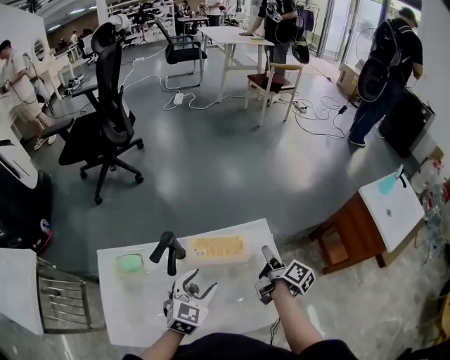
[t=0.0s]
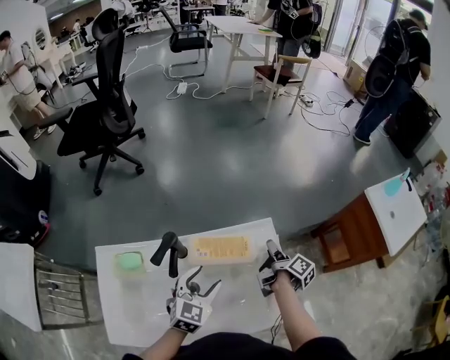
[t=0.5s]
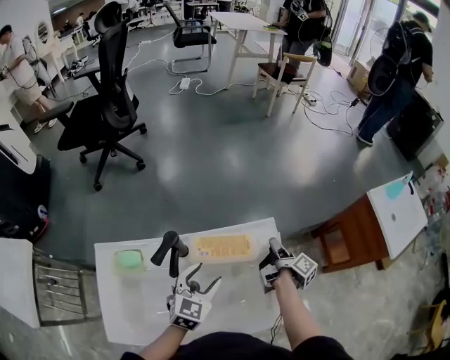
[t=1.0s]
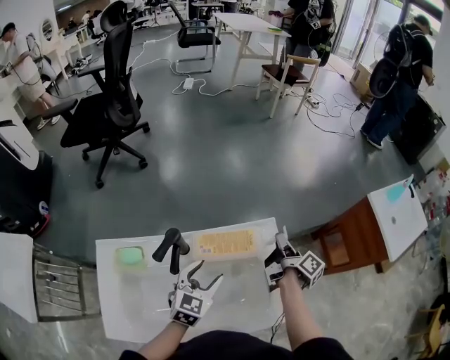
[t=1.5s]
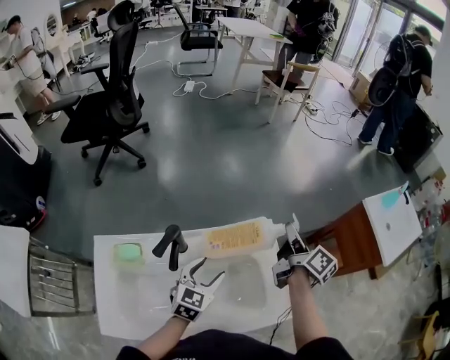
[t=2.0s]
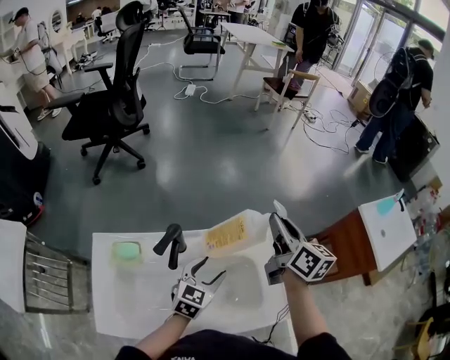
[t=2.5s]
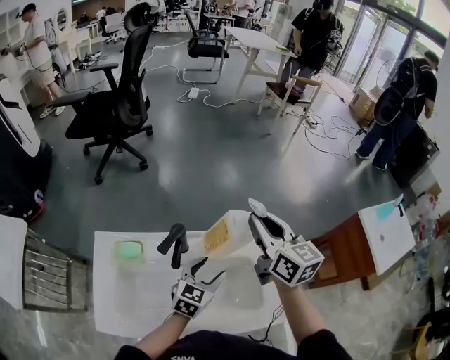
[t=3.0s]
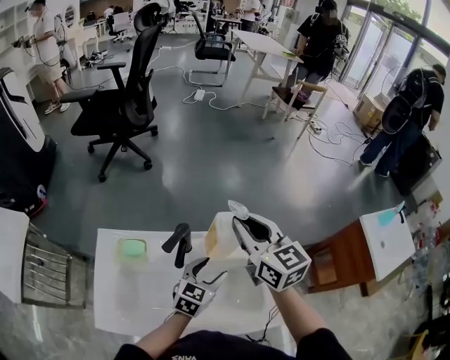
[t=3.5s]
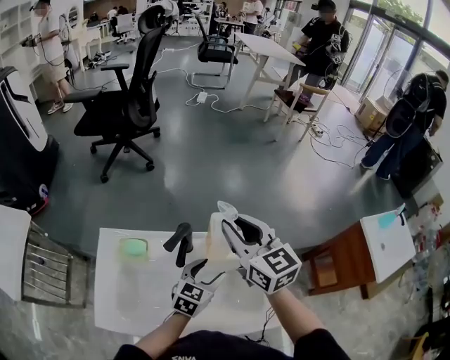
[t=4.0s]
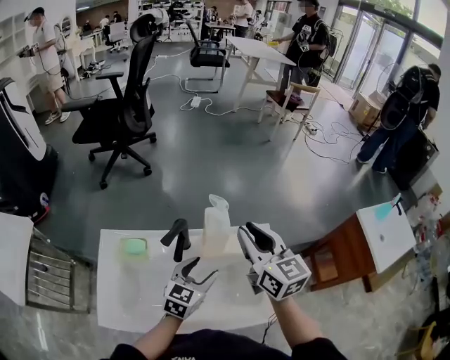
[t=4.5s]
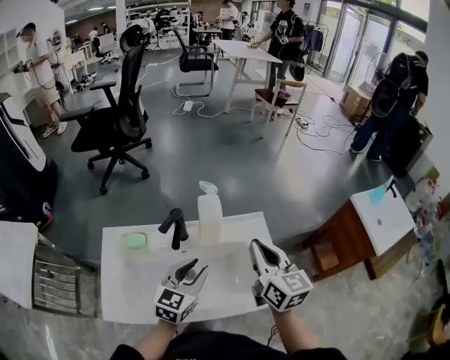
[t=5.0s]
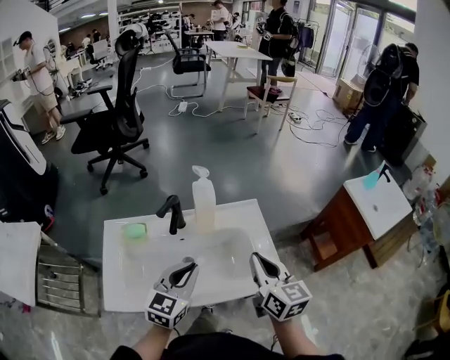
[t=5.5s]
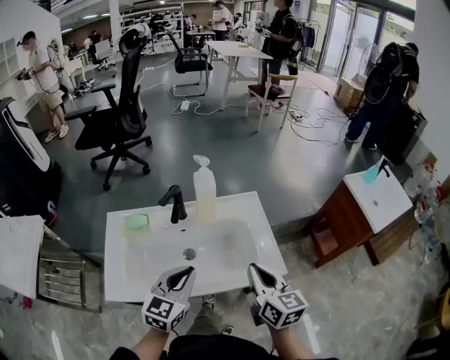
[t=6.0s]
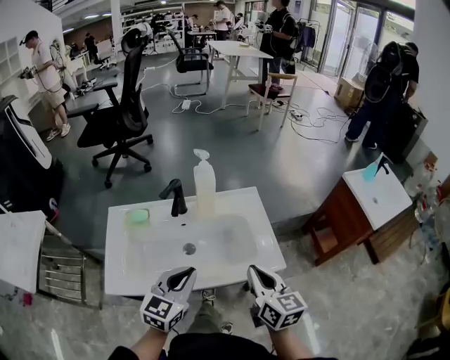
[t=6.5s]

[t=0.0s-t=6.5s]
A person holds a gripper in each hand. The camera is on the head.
t=0.0s to t=2.0s: The right gripper goes roughly 10 cm upward and forward, and closes its fingers.
t=2.0s to t=4.5s: The right gripper travels to the left and upward by roughly 20 cm, and rotates around the line of its fingers by about 50 degrees, counterclockwise from behind. The left gripper moves about 5 cm.
t=4.5s to t=6.5s: Both grippers travel together backward, about 25 cm. The right gripper closes, while the left gripper closes up.

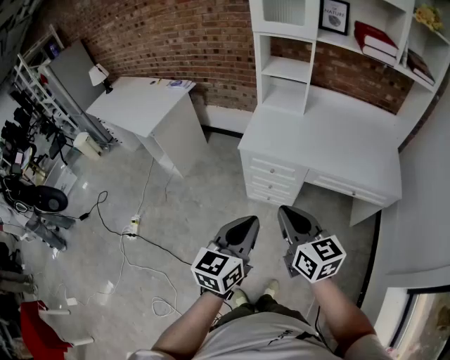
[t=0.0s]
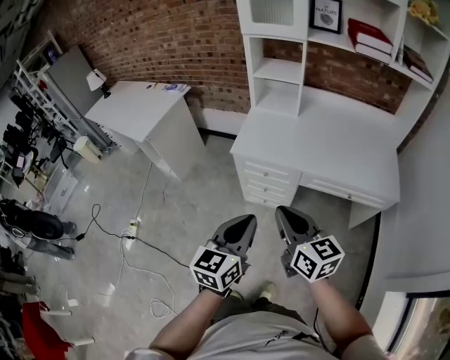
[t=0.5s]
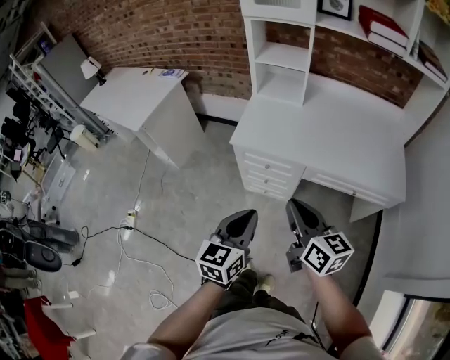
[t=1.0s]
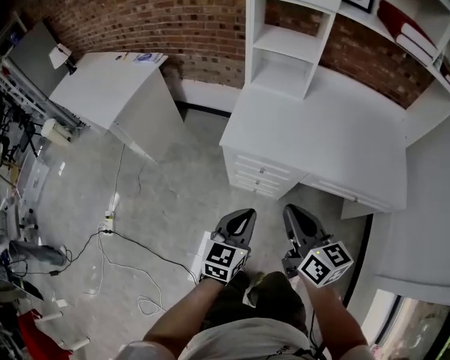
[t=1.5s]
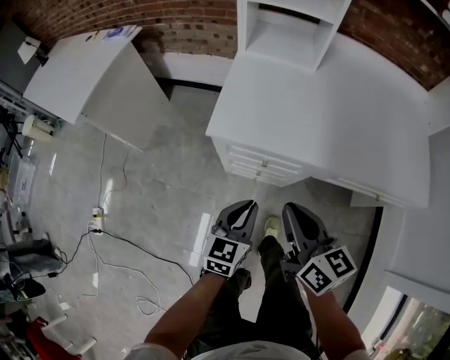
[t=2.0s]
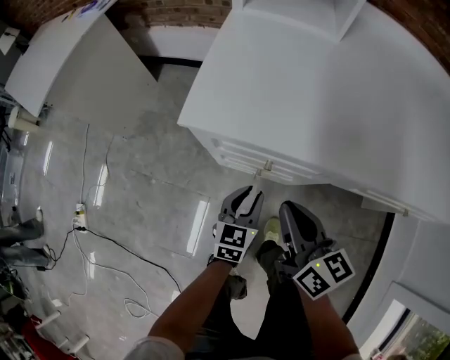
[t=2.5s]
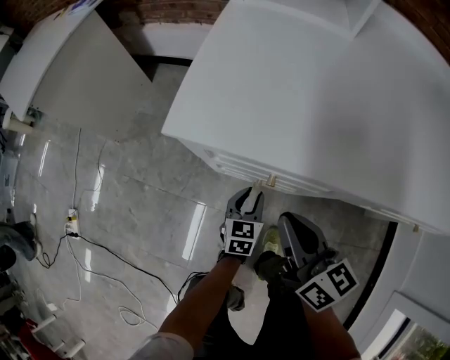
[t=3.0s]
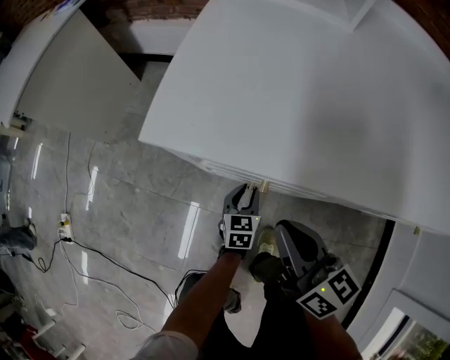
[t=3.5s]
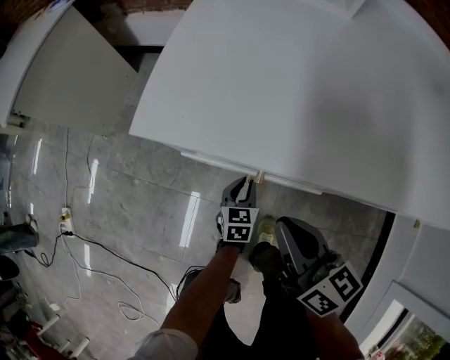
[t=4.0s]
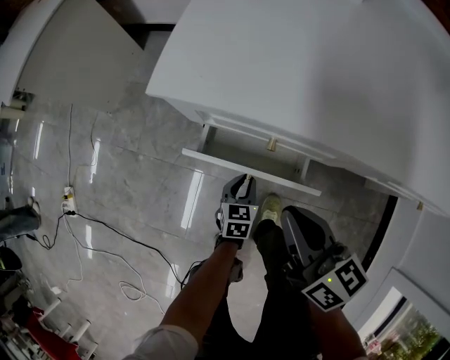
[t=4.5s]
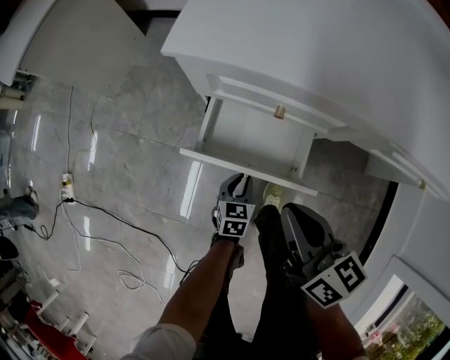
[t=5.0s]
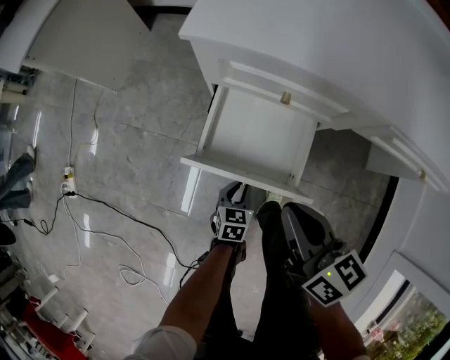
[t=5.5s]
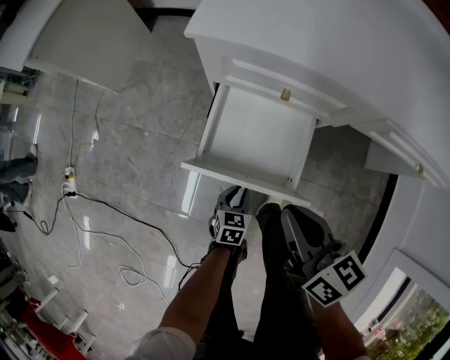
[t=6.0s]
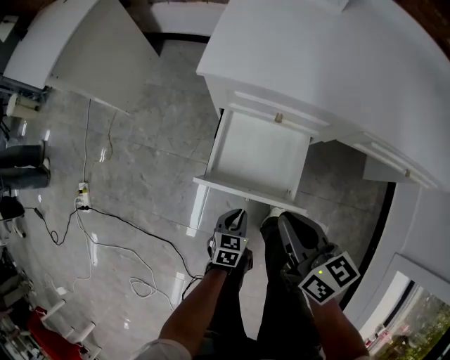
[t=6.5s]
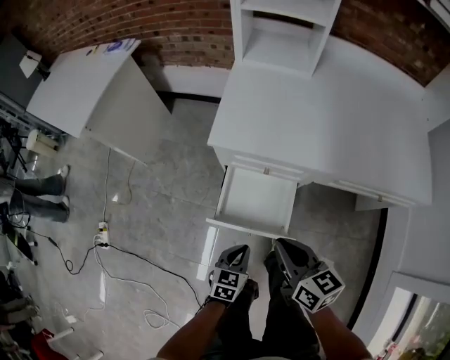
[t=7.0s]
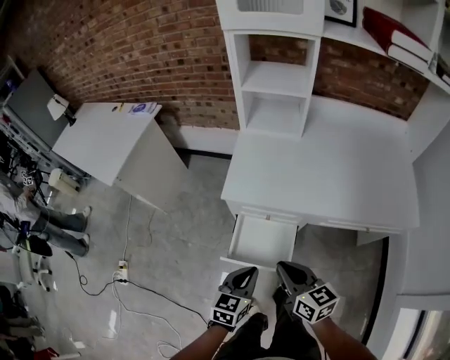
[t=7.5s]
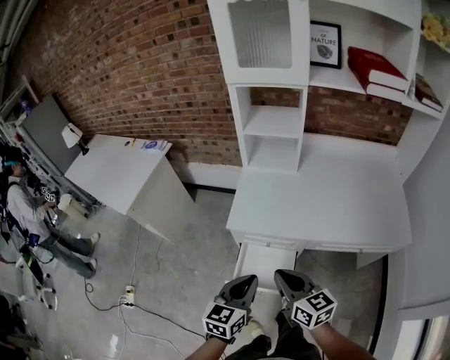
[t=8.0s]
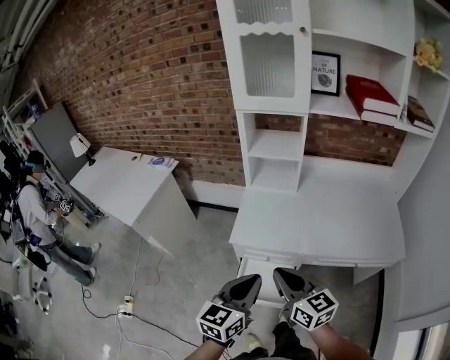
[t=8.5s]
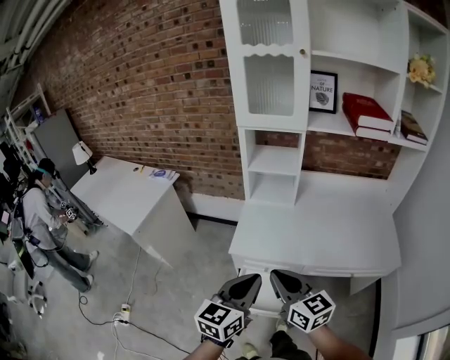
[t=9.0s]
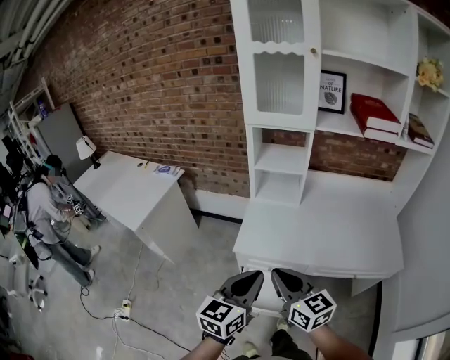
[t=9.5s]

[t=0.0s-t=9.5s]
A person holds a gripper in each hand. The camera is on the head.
t=0.0s to t=2.0s: The left gripper shifts some 40 cm downward and forward. The right gripper travels forward and downward by about 30 cm.
t=2.0s to t=4.0s: The left gripper travels downward by roughly 40 cm, and rotates some 20 degrees, while the right gripper heads downward, covering about 25 cm.
t=4.0s to t=5.5s: The right gripper moves backward and to the left, some 15 cm, while the left gripper is displaced backward by some 20 cm.
t=5.5s to t=7.5s: The right gripper moves upward, approximately 25 cm, while the left gripper goes about 50 cm upward, and changes its angle by approximately 20 degrees.
t=7.5s to t=9.5s: Both grippers travel together upward, some 25 cm. The left gripper changes its angle by some 20 degrees.

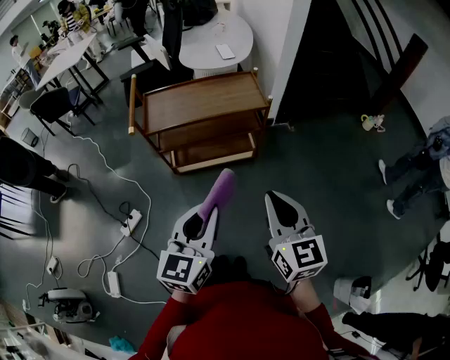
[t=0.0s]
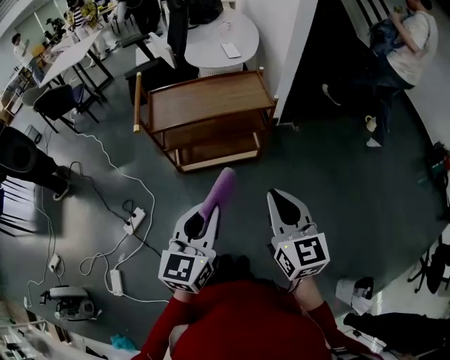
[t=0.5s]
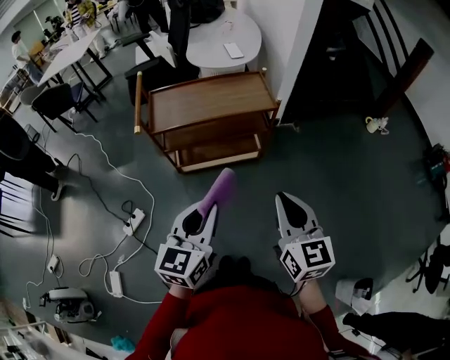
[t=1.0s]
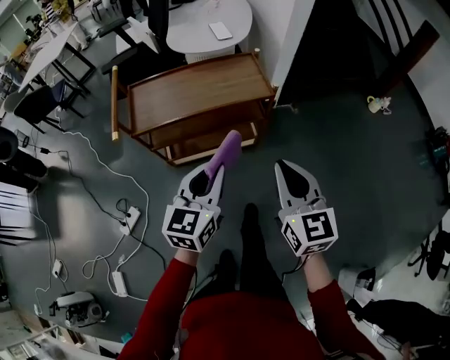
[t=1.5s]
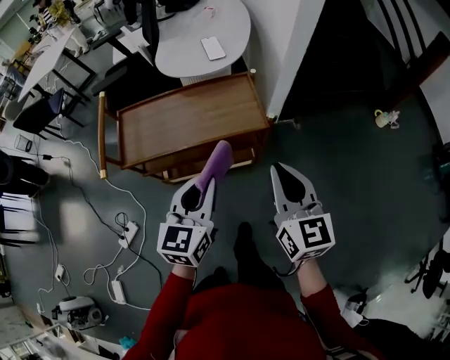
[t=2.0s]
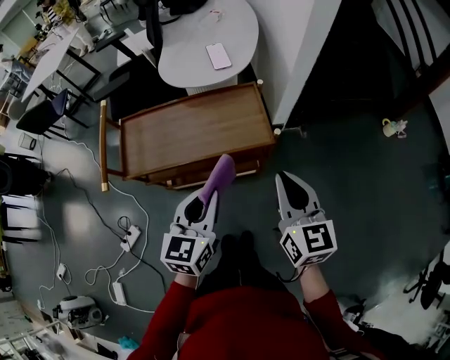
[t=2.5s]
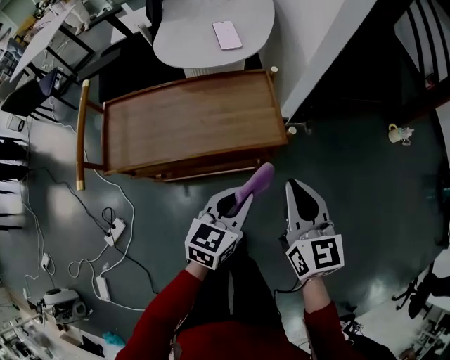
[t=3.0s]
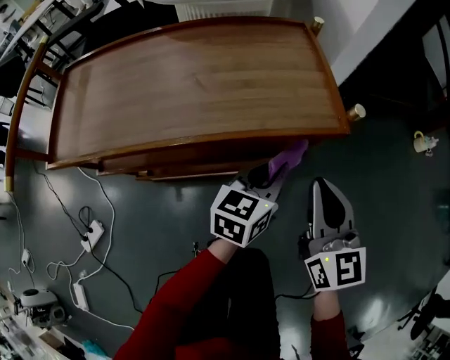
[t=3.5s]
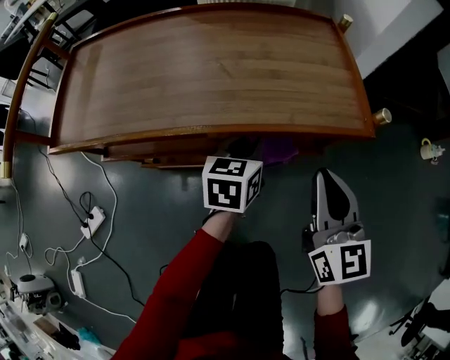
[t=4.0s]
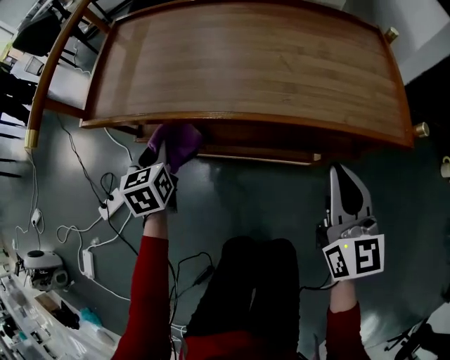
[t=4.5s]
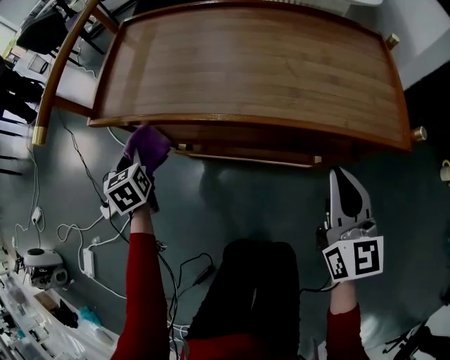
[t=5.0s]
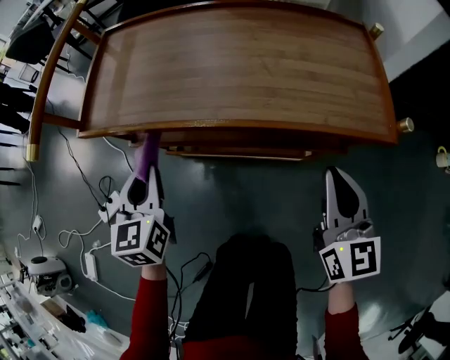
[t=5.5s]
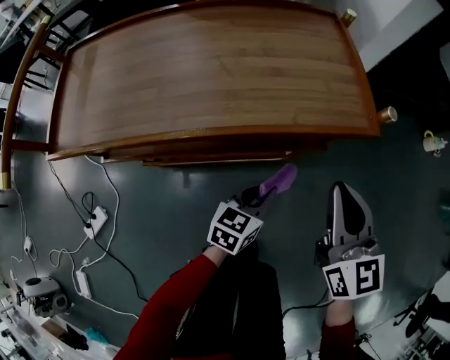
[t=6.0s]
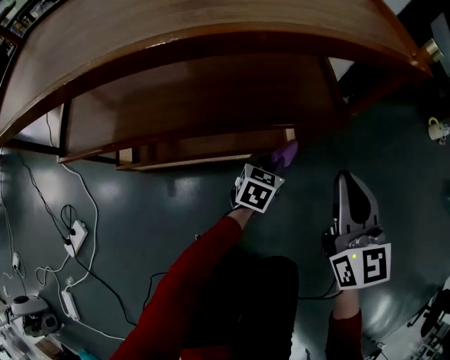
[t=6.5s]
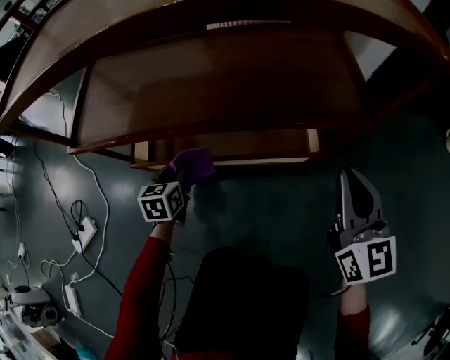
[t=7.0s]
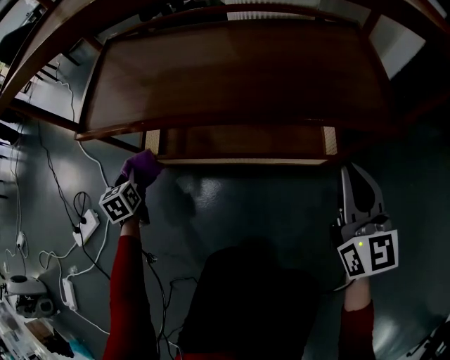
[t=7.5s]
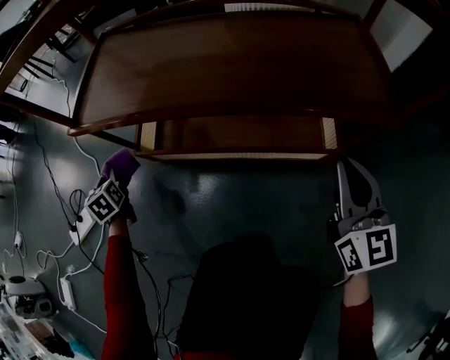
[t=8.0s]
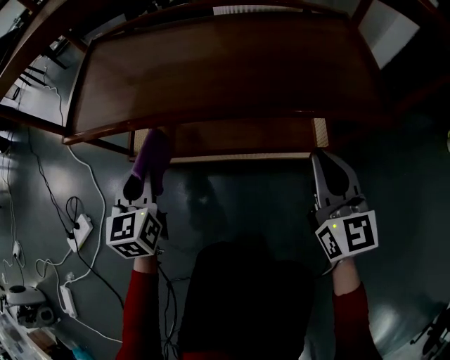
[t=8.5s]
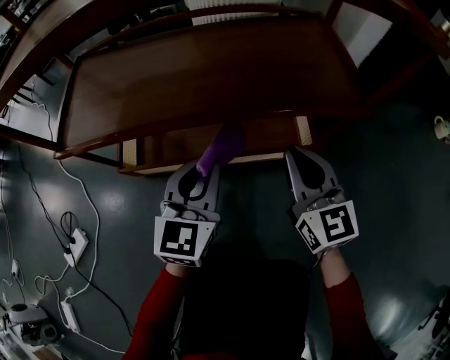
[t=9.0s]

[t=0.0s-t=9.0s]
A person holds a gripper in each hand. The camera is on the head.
t=0.0s to t=2.0s: Both grippers travel together forward, approximately 20 cm.
t=2.0s to t=4.5s: Both grippers travel together downward, about 25 cm. The left gripper changes its angle by roughly 40 degrees.
t=4.5s to t=7.0s: The right gripper goes about 15 cm downward. Meanwhile the left gripper heads downward, covering roughly 25 cm.
t=7.0s to t=9.0s: The left gripper shifts approximately 15 cm upward, and rotates about 30 degrees. Meanwhile the right gripper ends up approximately 10 cm from where it was.

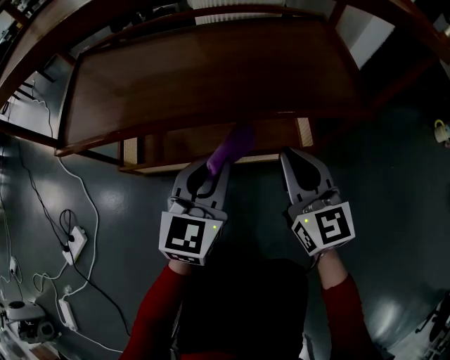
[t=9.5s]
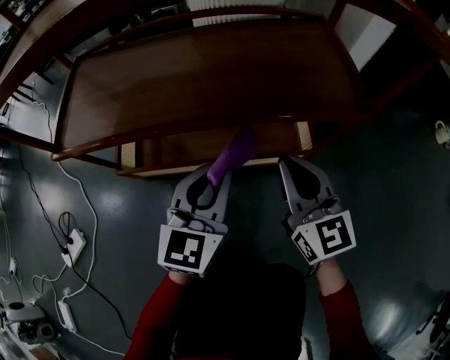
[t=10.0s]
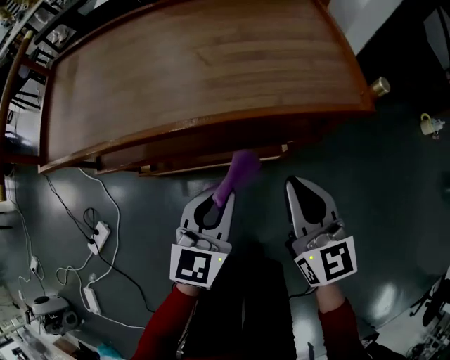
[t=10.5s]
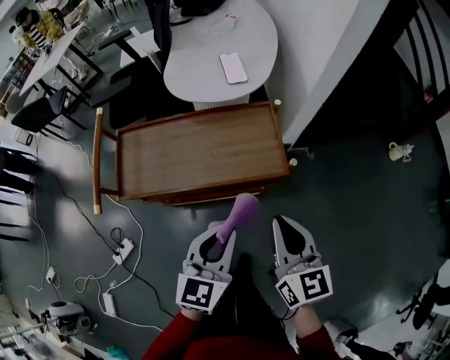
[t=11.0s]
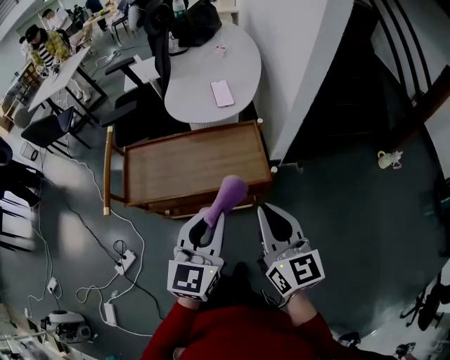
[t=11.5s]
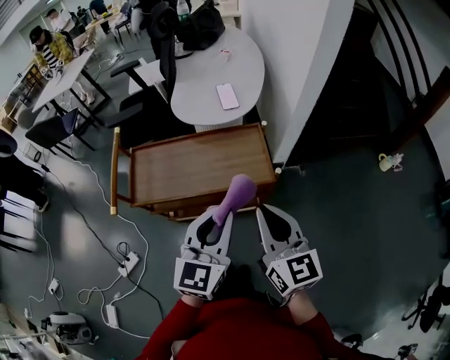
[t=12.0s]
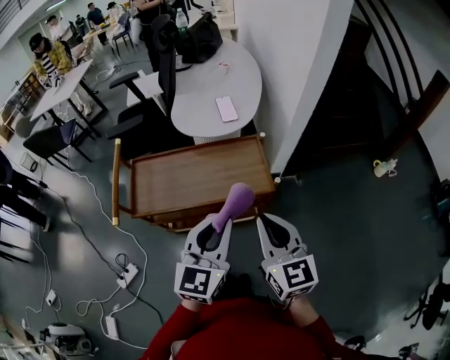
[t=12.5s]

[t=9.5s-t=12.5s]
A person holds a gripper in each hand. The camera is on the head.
t=9.5s to t=11.0s: The two grippers go roughly 35 cm upward.
t=11.0s to t=12.5s: The right gripper moves some 5 cm; the left gripper moves upward, roughly 10 cm.
